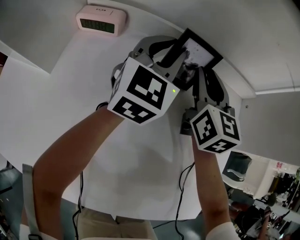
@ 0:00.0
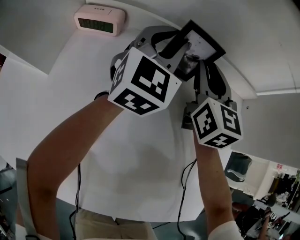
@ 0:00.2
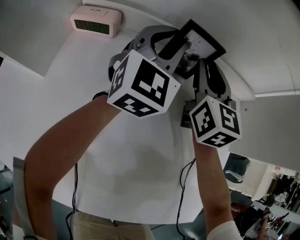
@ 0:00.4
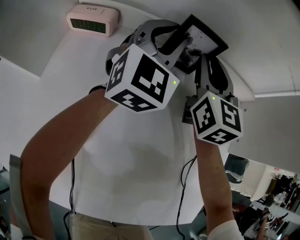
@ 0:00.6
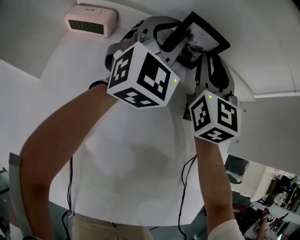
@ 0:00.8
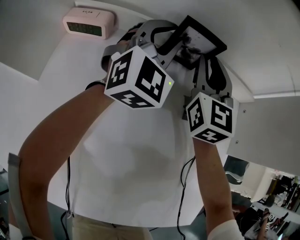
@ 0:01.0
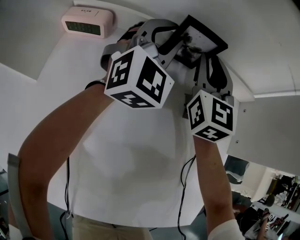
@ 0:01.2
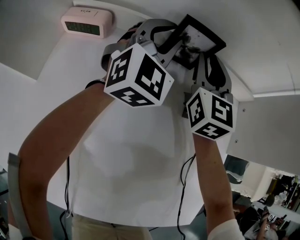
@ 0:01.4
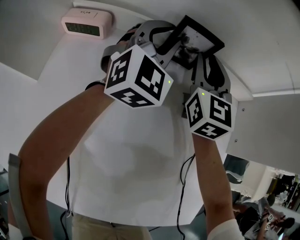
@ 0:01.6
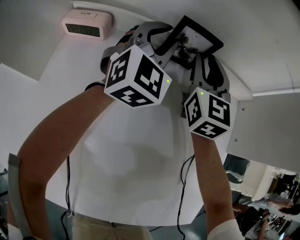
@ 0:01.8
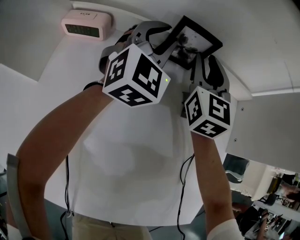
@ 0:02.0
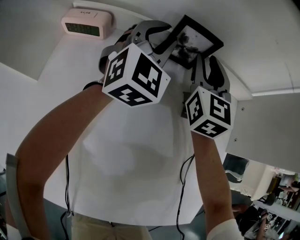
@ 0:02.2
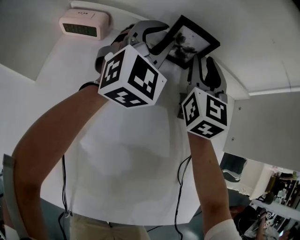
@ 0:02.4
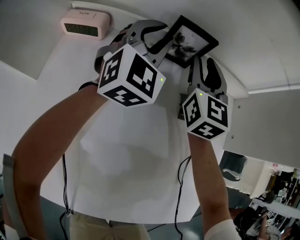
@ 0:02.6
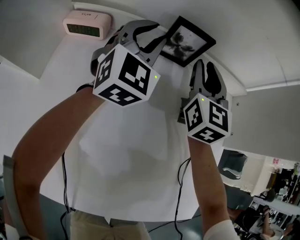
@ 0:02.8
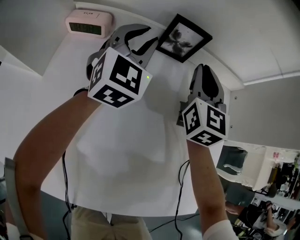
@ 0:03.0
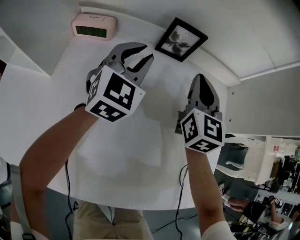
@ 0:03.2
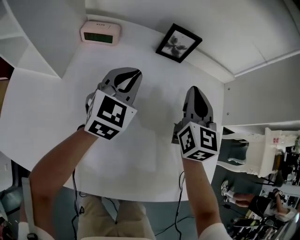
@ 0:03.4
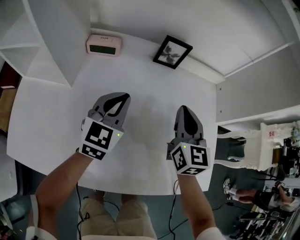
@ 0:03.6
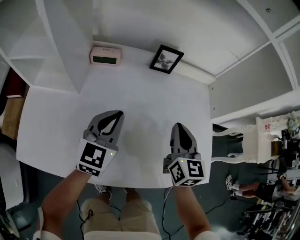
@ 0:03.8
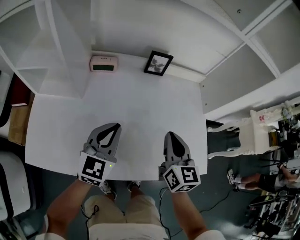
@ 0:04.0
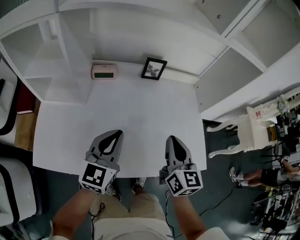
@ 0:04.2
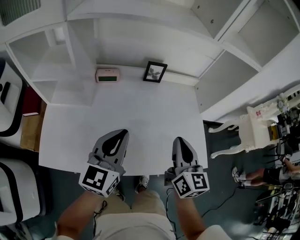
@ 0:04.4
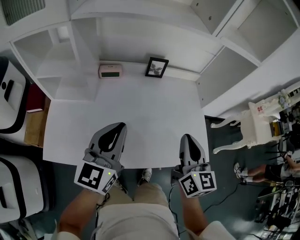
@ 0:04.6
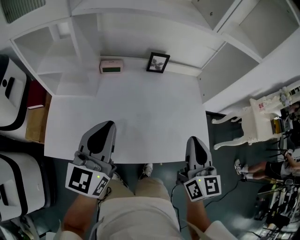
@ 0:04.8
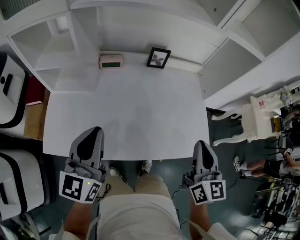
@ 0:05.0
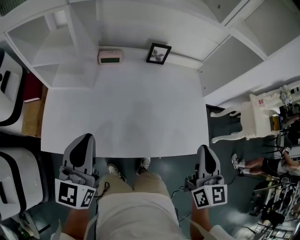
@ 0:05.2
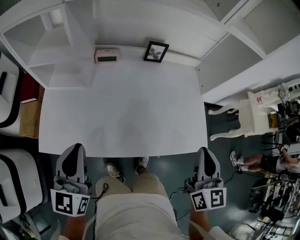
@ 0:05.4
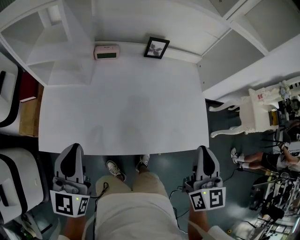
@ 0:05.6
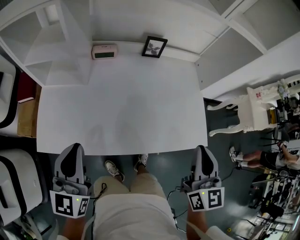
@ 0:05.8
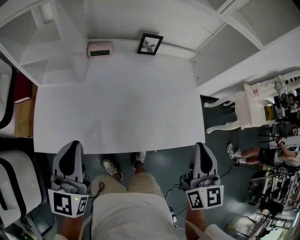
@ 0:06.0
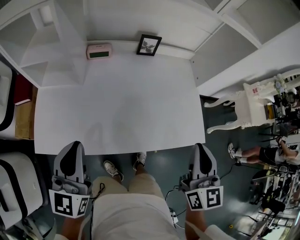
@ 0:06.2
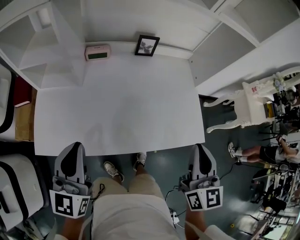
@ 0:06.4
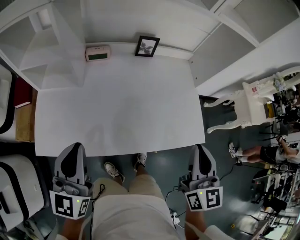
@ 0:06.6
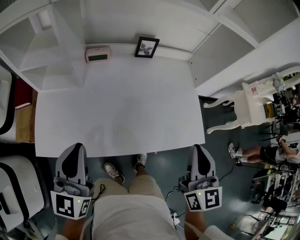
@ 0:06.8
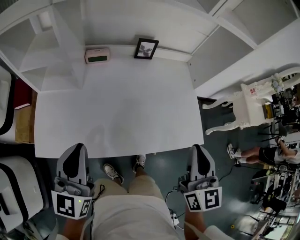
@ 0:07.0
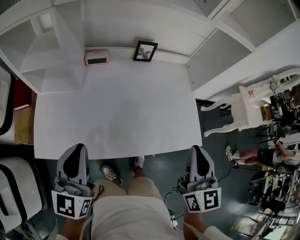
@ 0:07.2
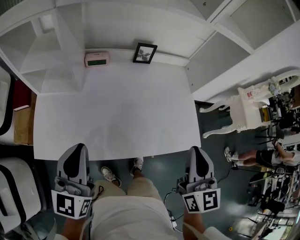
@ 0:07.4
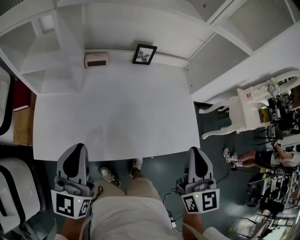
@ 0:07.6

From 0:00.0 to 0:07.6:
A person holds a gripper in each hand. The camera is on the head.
From 0:00.0 to 0:01.6: The right gripper is displaced forward by some 5 cm. Meanwhile the left gripper shifts by some 5 cm, and rotates about 20 degrees.
From 0:01.6 to 0:03.0: The right gripper heads backward, covering about 5 cm, while the left gripper changes place by about 5 cm.
From 0:03.0 to 0:04.6: The two grippers travel together, backward, roughly 40 cm. Both grippers travel together upward, some 20 cm. The right gripper turns by about 20 degrees, while the left gripper swivels some 30 degrees.
From 0:04.6 to 0:06.0: The left gripper moves to the left and backward, roughly 15 cm. Meanwhile the right gripper is displaced backward by some 10 cm.
From 0:06.0 to 0:07.6: The grippers move only a little.

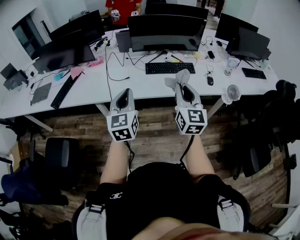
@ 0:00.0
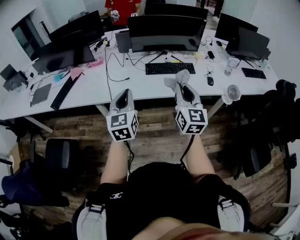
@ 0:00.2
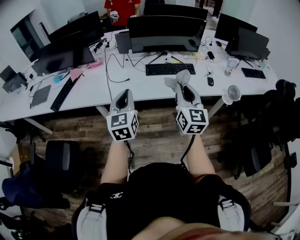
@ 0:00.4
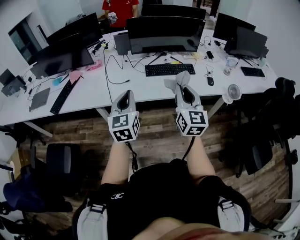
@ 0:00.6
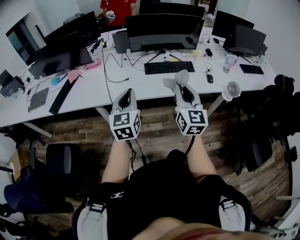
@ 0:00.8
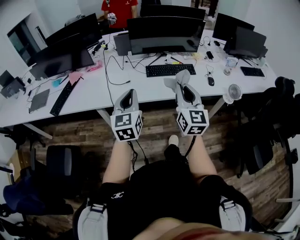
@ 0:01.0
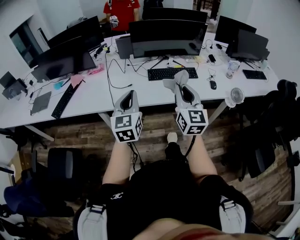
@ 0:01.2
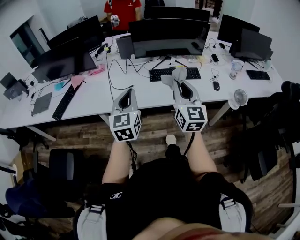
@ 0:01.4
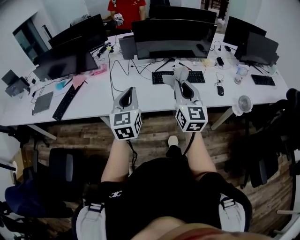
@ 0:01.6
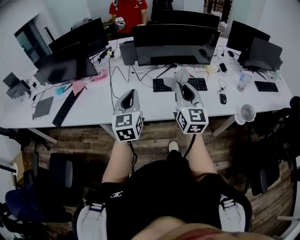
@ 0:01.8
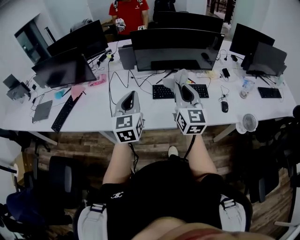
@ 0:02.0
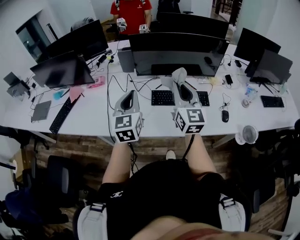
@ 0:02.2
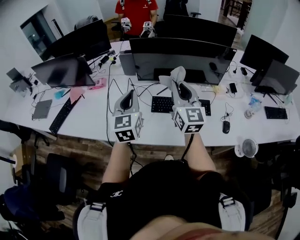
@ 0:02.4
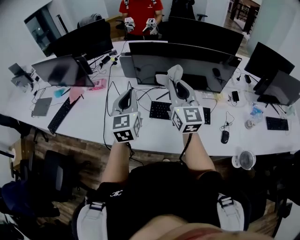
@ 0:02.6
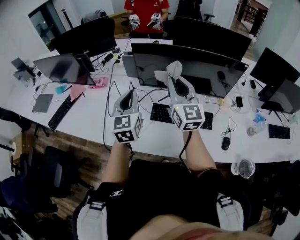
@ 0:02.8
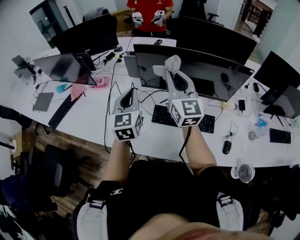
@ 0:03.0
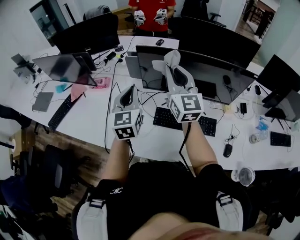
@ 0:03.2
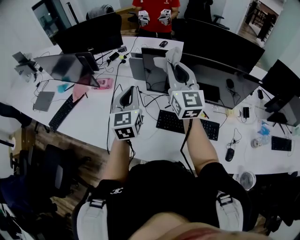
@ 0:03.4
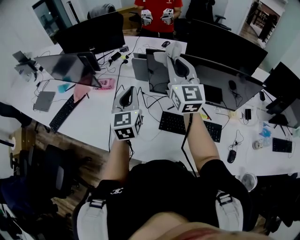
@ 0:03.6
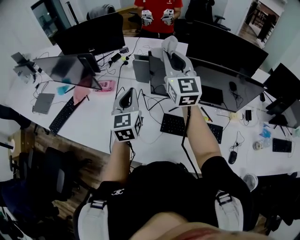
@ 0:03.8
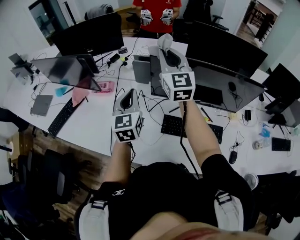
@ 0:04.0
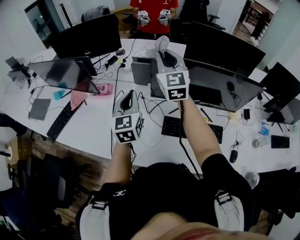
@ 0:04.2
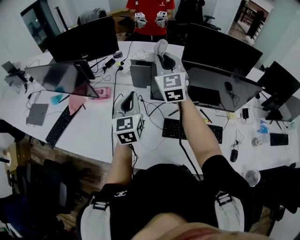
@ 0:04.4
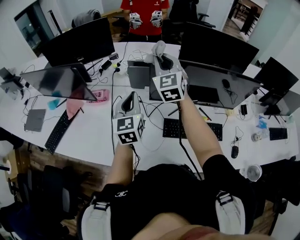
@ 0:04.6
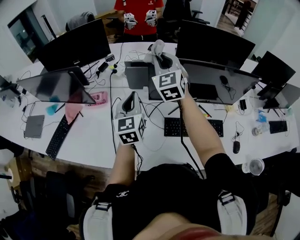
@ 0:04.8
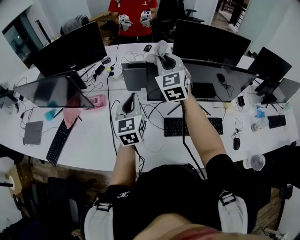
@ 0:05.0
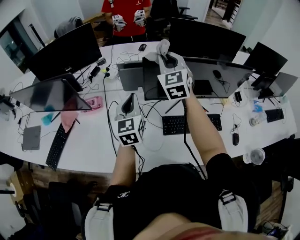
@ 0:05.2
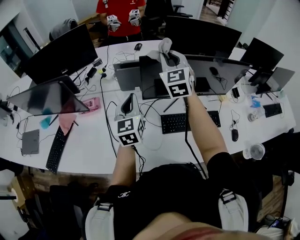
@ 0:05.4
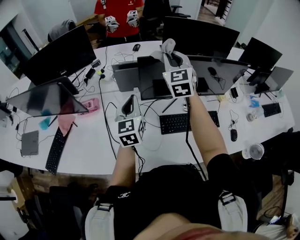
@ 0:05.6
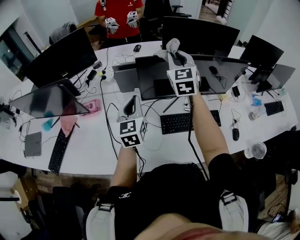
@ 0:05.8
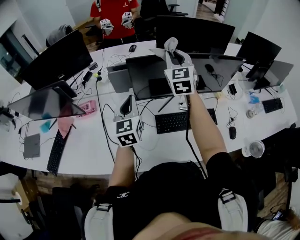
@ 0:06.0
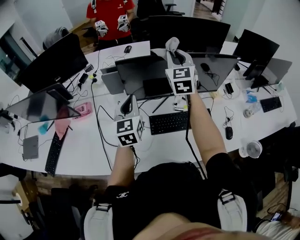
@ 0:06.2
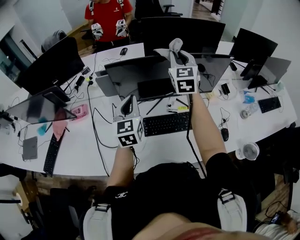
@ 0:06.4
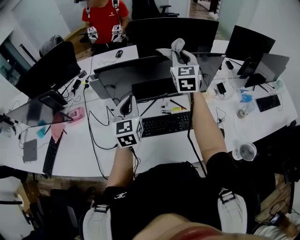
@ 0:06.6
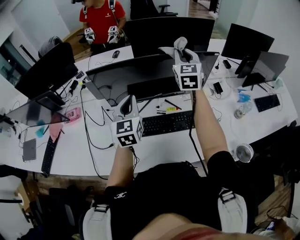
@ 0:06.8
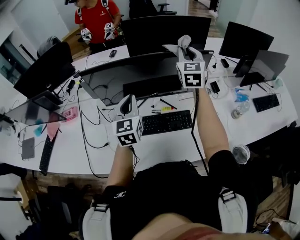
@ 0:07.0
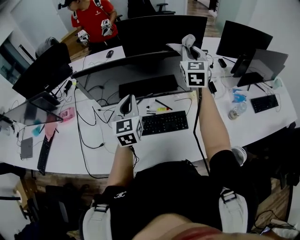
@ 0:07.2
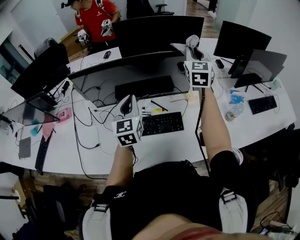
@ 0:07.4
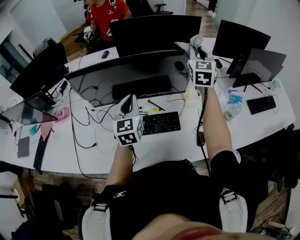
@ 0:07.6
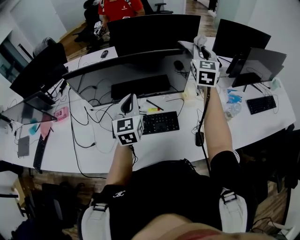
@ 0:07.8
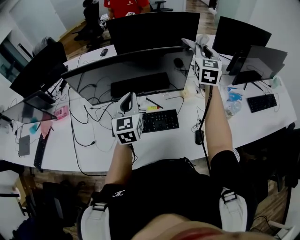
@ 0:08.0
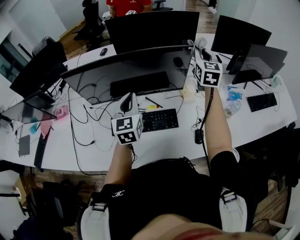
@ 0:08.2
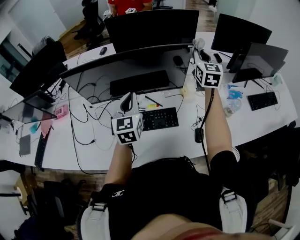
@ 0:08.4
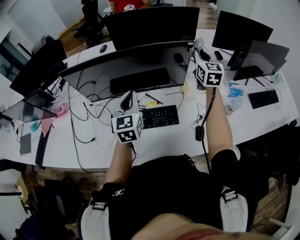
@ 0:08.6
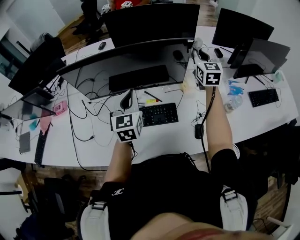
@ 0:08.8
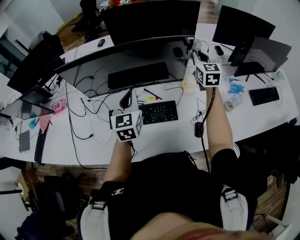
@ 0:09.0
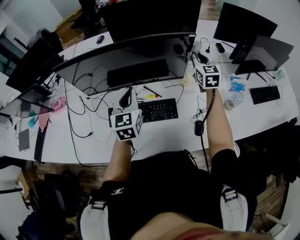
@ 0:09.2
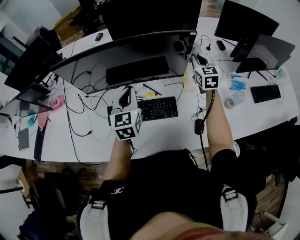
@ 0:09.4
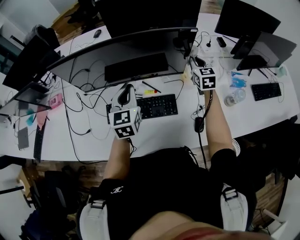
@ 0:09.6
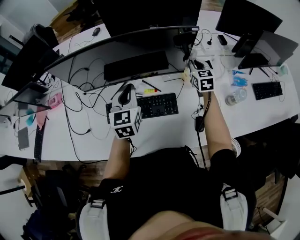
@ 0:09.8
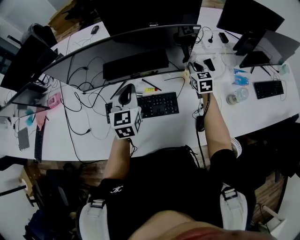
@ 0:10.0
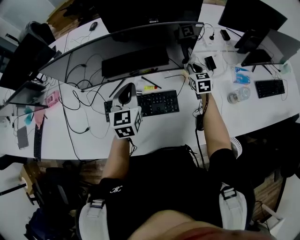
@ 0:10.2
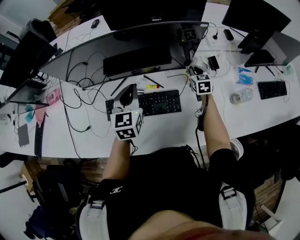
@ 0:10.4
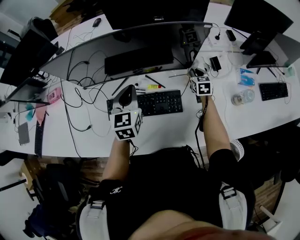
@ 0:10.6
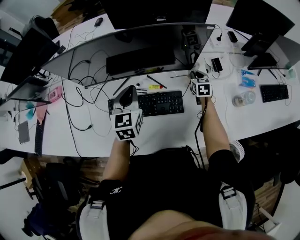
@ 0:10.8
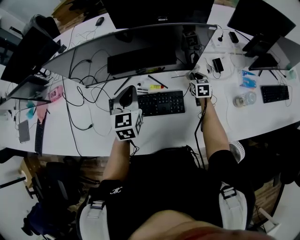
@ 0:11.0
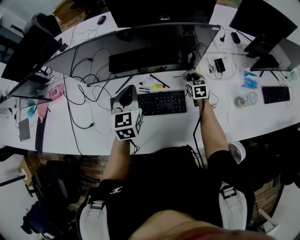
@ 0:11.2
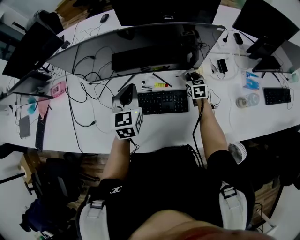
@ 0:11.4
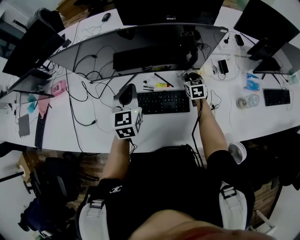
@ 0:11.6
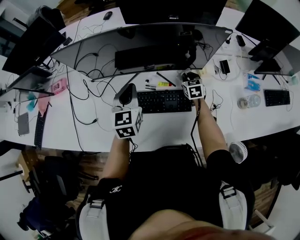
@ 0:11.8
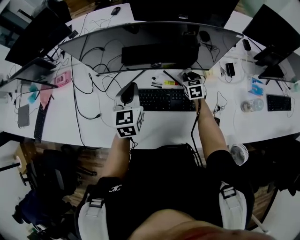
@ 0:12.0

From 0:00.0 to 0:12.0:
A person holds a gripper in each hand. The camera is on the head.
From 0:00.0 to 0:01.6: Both grippers move forward, roughly 10 cm.
From 0:01.6 to 0:03.0: Both grippers move forward, some 35 cm. The right gripper swivels some 20 degrees.
From 0:03.0 to 0:04.4: The left gripper goes approximately 15 cm forward and to the left, while the right gripper is displaced forward and to the left by roughly 20 cm, and turns by about 20 degrees.
From 0:04.4 to 0:06.0: The left gripper moves to the right, approximately 5 cm. Meanwhile the right gripper shifts some 15 cm to the right, and turns by roughly 20 degrees.
From 0:06.0 to 0:07.6: The grippers both shift to the right by some 35 cm.
From 0:07.6 to 0:09.0: The right gripper moves downward, some 10 cm.
From 0:09.0 to 0:10.4: The left gripper moves downward, roughly 5 cm. Meanwhile the right gripper shifts roughly 25 cm downward, and swivels about 20 degrees.
From 0:10.4 to 0:12.0: Both grippers travel together to the left, approximately 10 cm.

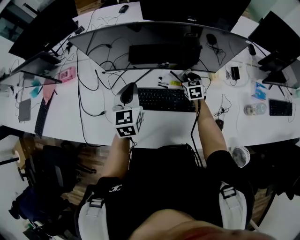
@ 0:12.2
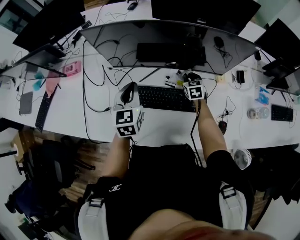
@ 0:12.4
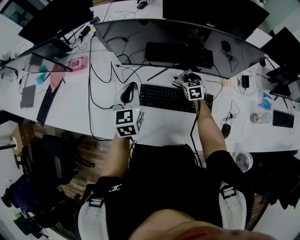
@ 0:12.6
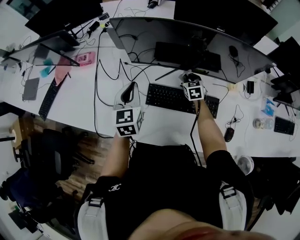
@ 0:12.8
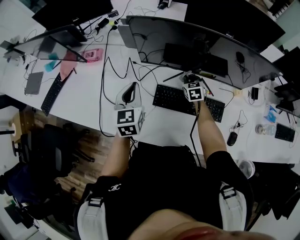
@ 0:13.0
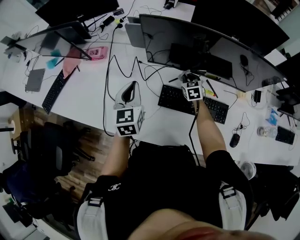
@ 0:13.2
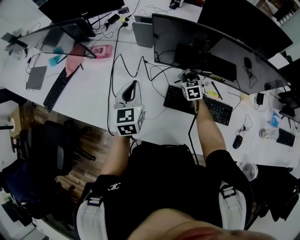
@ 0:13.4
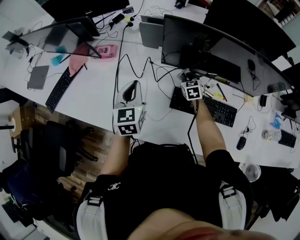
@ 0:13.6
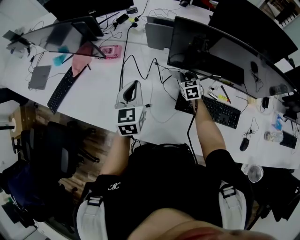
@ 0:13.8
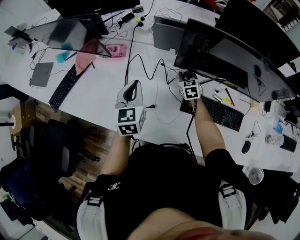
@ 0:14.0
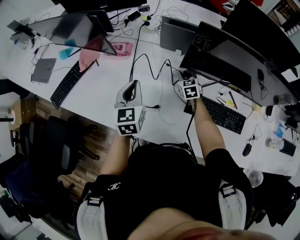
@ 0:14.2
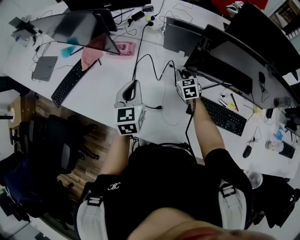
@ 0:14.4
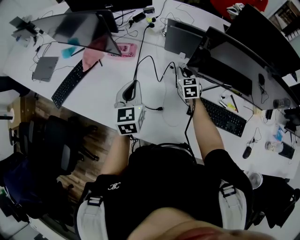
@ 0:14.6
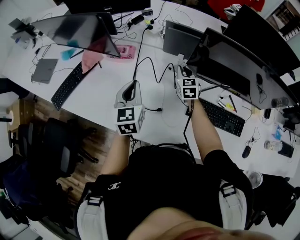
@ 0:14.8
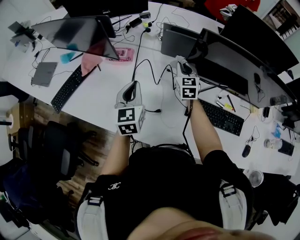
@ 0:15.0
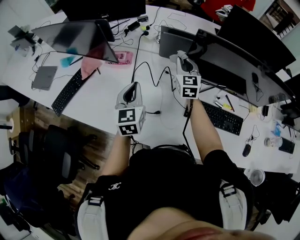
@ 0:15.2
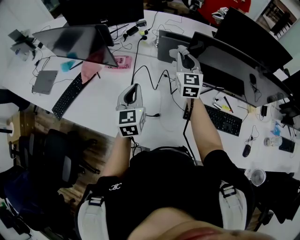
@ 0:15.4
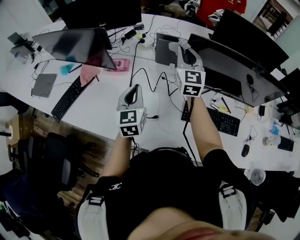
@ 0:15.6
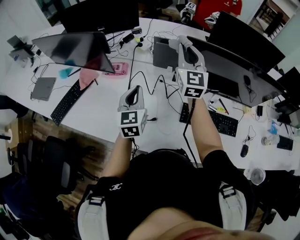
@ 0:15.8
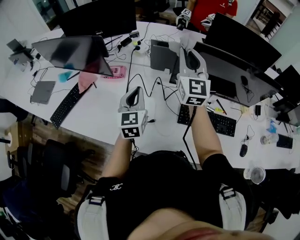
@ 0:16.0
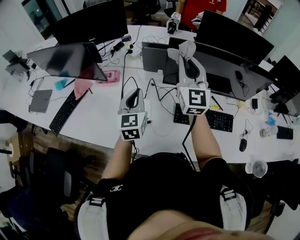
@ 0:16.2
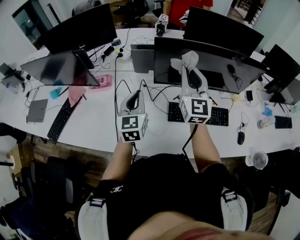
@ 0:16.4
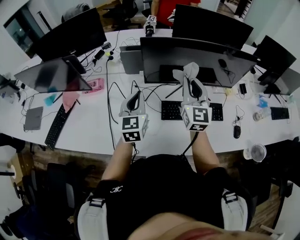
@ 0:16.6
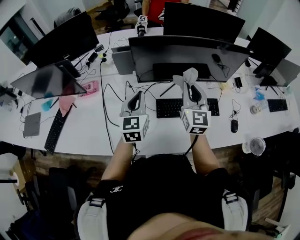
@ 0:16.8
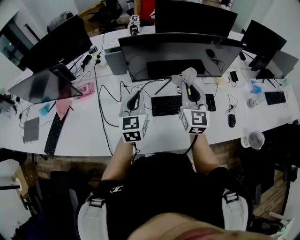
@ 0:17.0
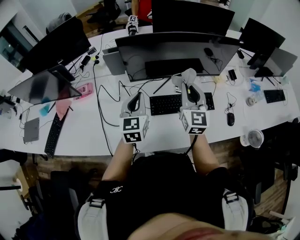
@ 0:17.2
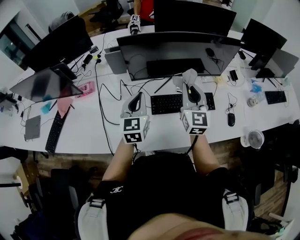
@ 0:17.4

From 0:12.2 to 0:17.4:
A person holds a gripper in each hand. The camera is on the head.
From 0:12.2 to 0:14.0: Both grippers travel together to the left, roughly 35 cm.
From 0:14.0 to 0:15.6: The right gripper moves upward, about 30 cm, and tips its fingers upward by some 40 degrees.
From 0:15.6 to 0:17.4: The left gripper goes about 25 cm to the right, and turns by roughly 20 degrees. Meanwhile the right gripper is displaced to the right and backward by roughly 35 cm.
